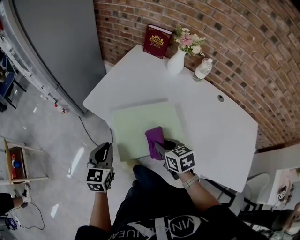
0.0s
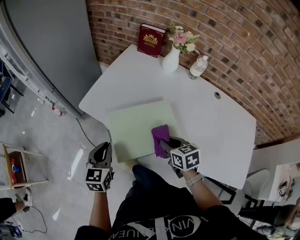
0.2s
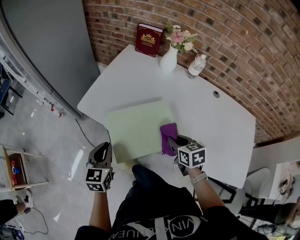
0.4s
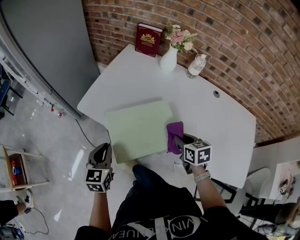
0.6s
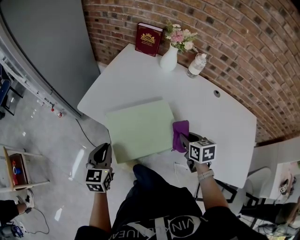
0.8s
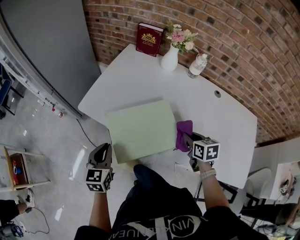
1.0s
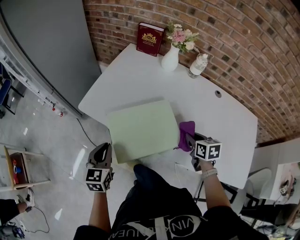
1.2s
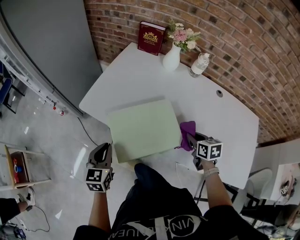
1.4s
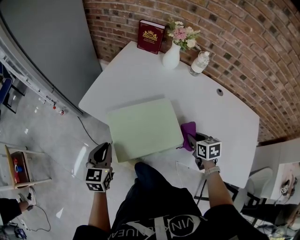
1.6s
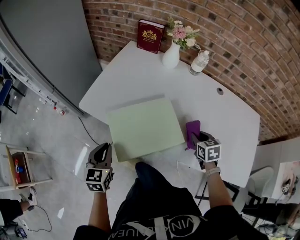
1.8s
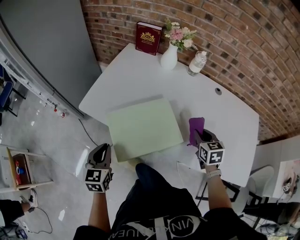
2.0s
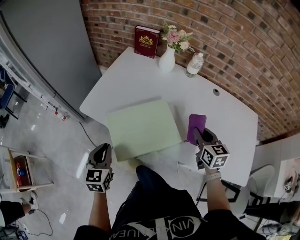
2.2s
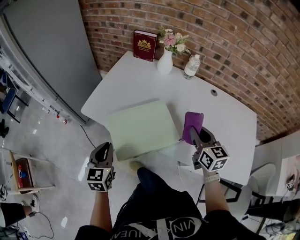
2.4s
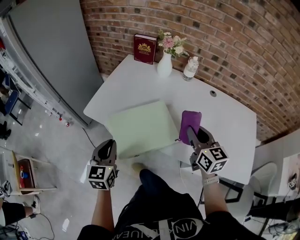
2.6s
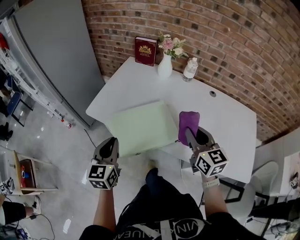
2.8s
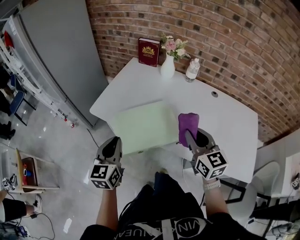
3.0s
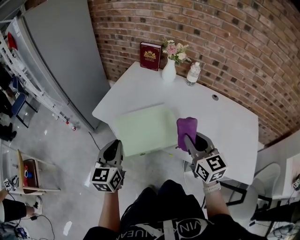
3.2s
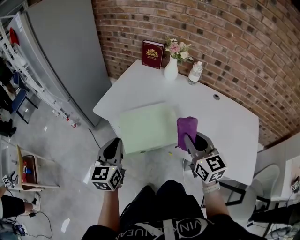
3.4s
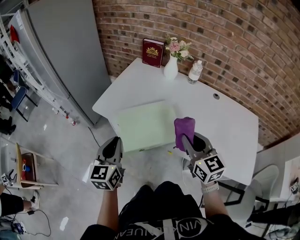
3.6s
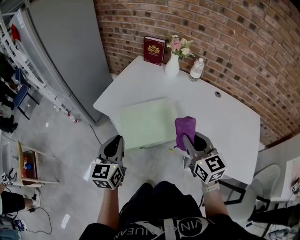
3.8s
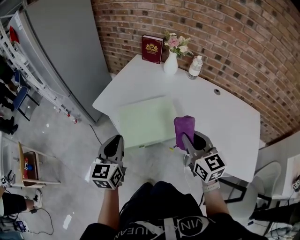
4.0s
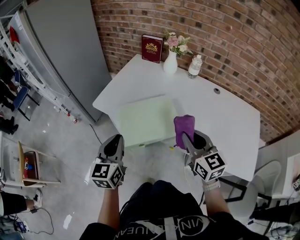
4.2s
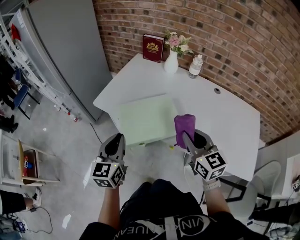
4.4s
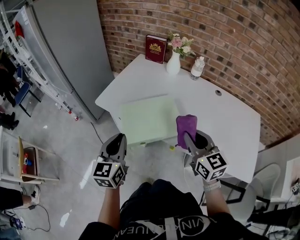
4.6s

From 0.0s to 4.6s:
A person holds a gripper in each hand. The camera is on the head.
From 0.0s to 1.6s: The right gripper goes approximately 20 cm to the right.
From 1.6s to 3.0s: The right gripper travels upward by roughly 20 cm, and tilts its fingers some 40 degrees upward. Meanwhile the left gripper goes approximately 10 cm upward.
From 3.0s to 4.6s: There are only small adjustments of the grippers.

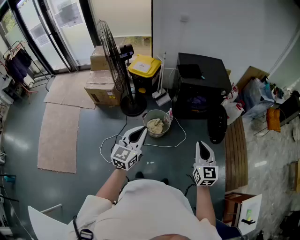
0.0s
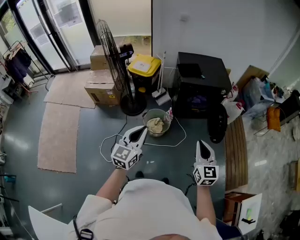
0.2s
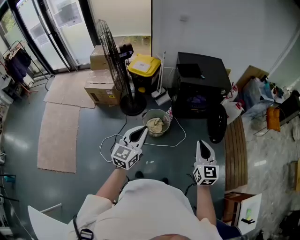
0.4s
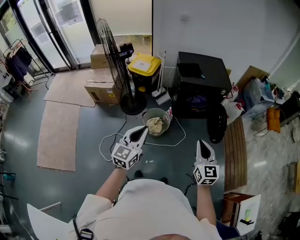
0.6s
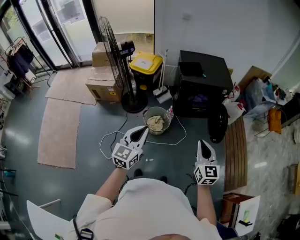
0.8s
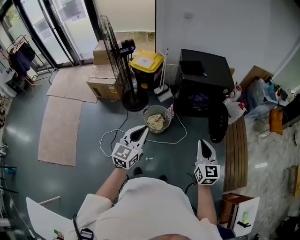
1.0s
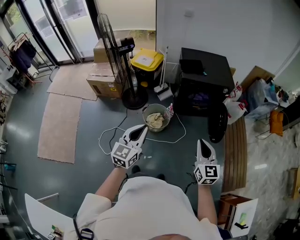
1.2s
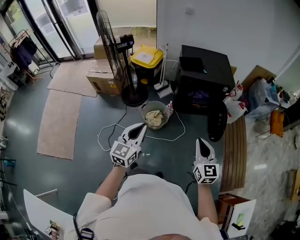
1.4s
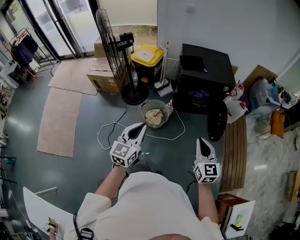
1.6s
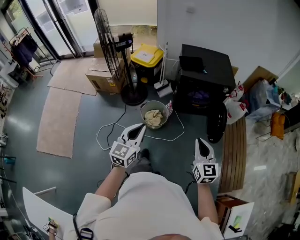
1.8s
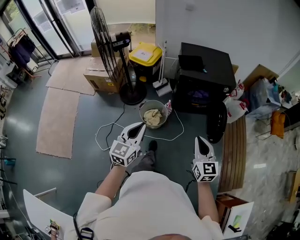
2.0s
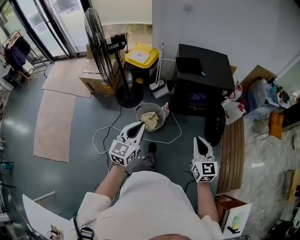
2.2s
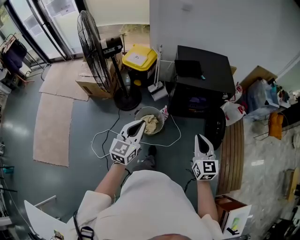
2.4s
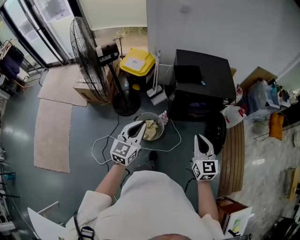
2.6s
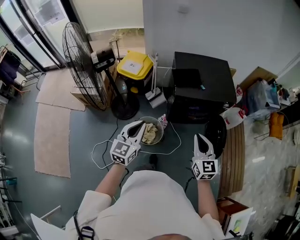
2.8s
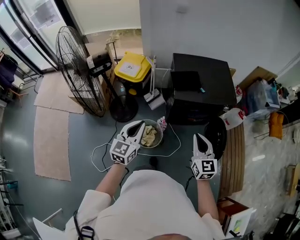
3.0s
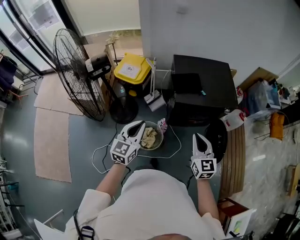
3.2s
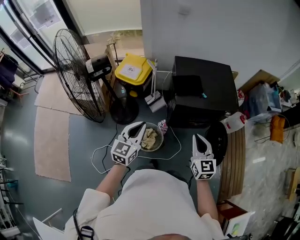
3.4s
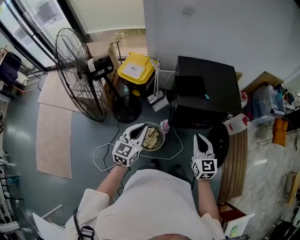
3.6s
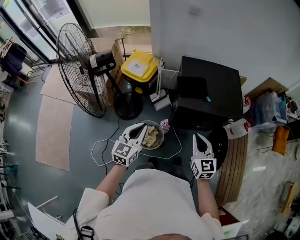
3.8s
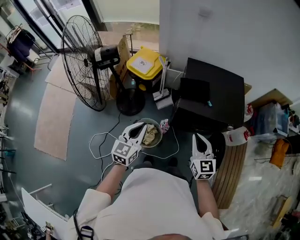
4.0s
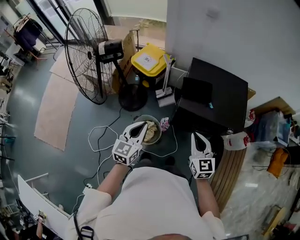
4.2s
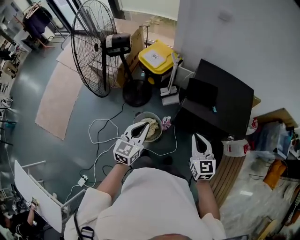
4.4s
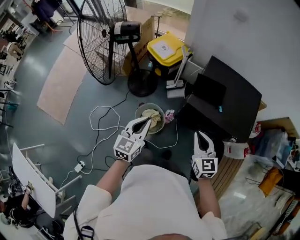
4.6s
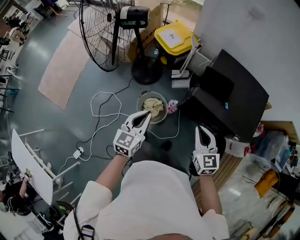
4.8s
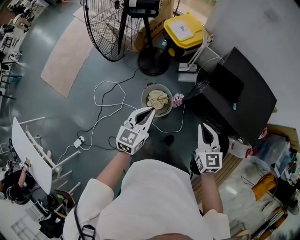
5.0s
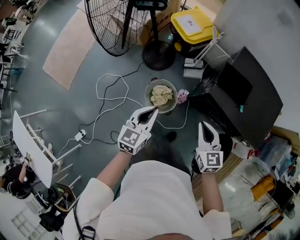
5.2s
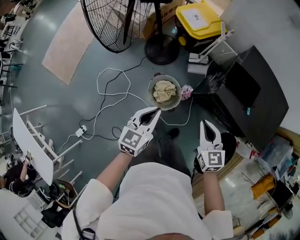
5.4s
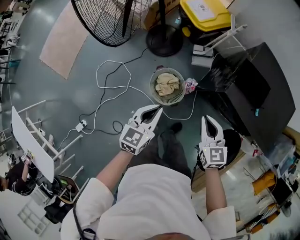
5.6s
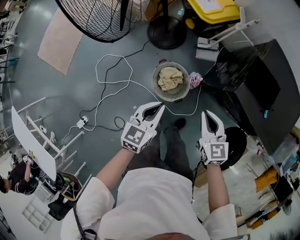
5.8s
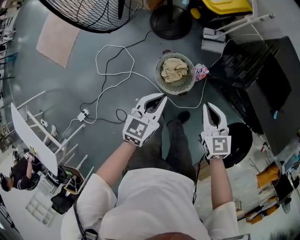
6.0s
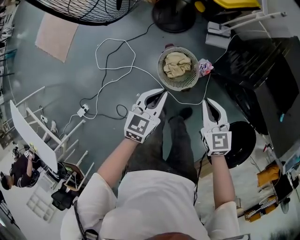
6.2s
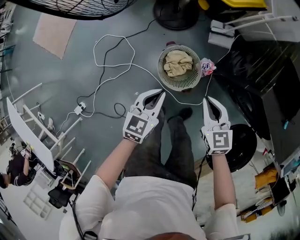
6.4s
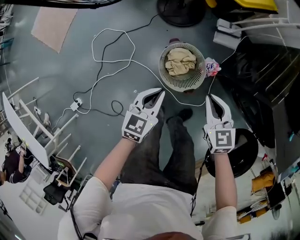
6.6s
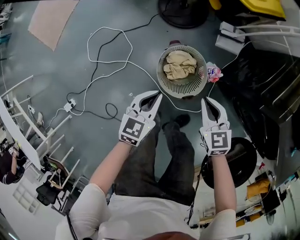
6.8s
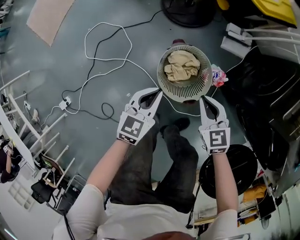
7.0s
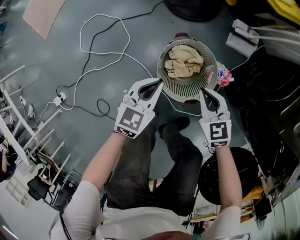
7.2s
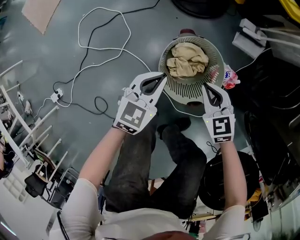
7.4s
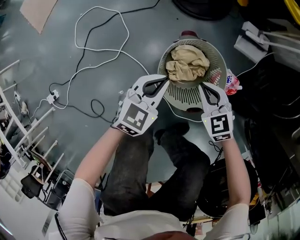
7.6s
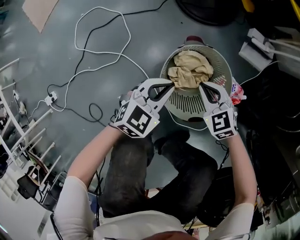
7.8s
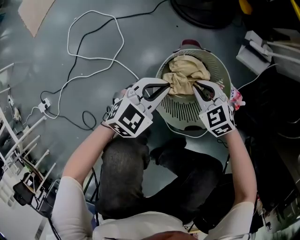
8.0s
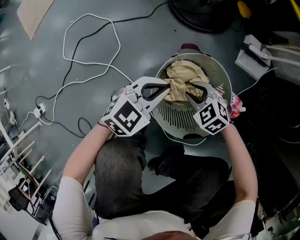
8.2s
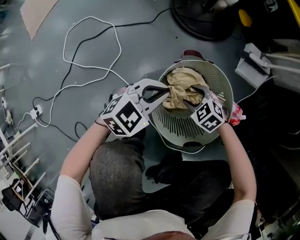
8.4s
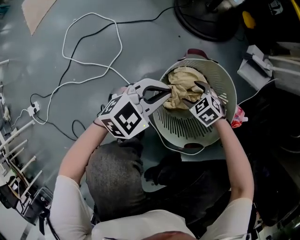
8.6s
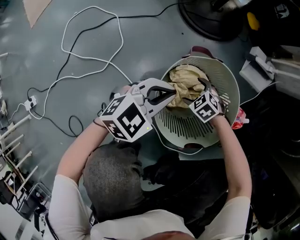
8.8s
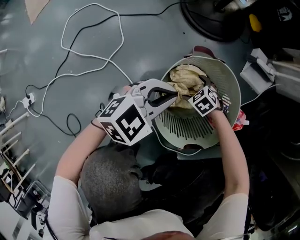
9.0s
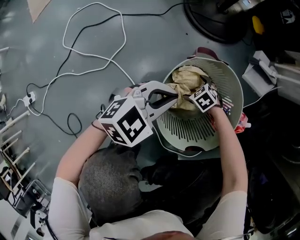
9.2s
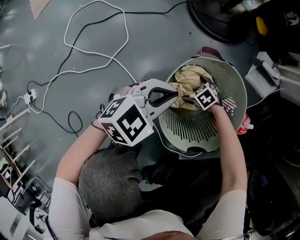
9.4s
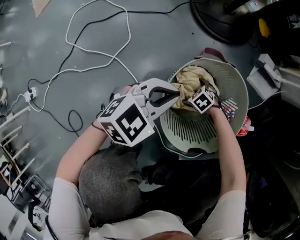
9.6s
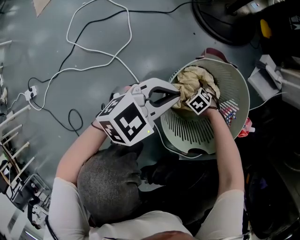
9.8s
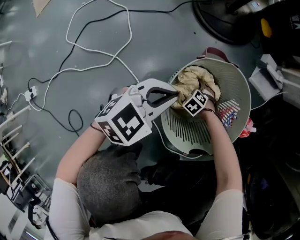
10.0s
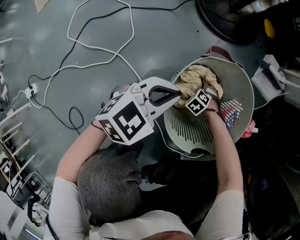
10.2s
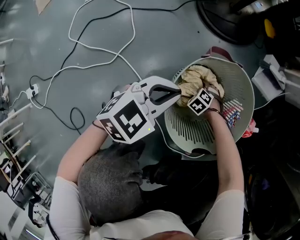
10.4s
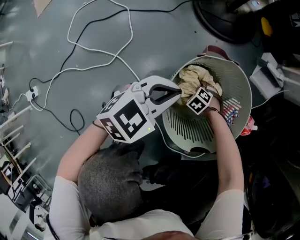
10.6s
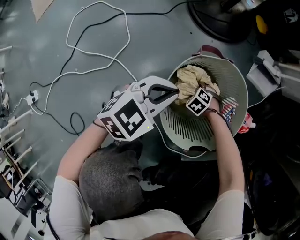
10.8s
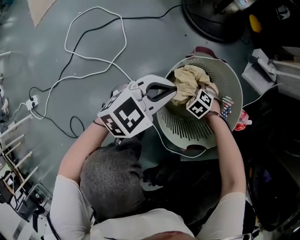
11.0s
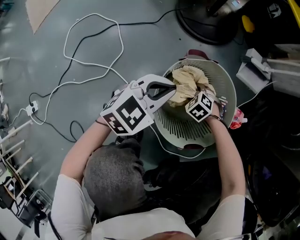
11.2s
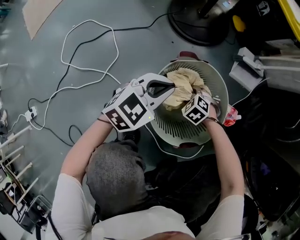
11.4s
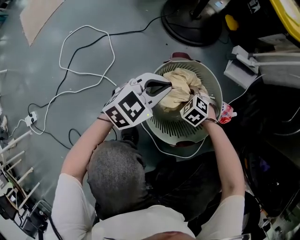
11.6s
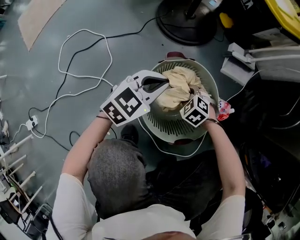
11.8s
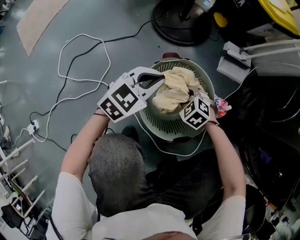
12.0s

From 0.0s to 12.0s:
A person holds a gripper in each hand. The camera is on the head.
From 0.0s to 1.6s: The two grippers go roughly 10 cm to the right.
From 1.6s to 3.0s: Both grippers move forward, some 35 cm.
From 3.0s to 4.4s: The right gripper travels forward by some 10 cm, and rotates some 20 degrees. Meanwhile the left gripper moves to the right, about 5 cm, and rotates approximately 20 degrees.
From 4.4s to 6.0s: The two grippers go approximately 30 cm downward and to the left. The left gripper swivels some 20 degrees. Meanwhile the right gripper rotates approximately 30 degrees.
From 6.0s to 7.6s: Both grippers travel together downward, about 40 cm. The right gripper turns by some 40 degrees.
From 7.6s to 9.0s: The left gripper heads downward, covering some 10 cm, and rotates roughly 20 degrees; the right gripper shifts about 35 cm downward, rotates approximately 30 degrees, and opens up.
From 9.0s to 10.4s: The right gripper heads downward, covering roughly 10 cm.
From 10.4s to 12.0s: The right gripper heads upward, covering about 25 cm, and closes; the left gripper moves some 10 cm.

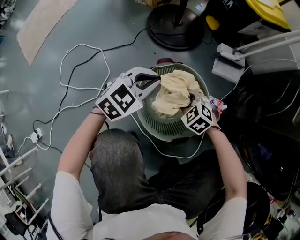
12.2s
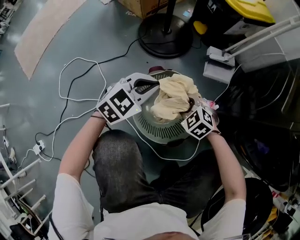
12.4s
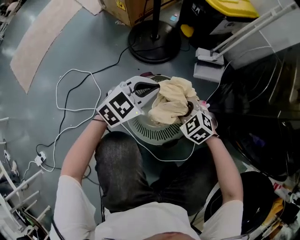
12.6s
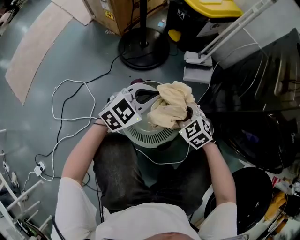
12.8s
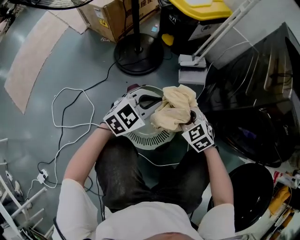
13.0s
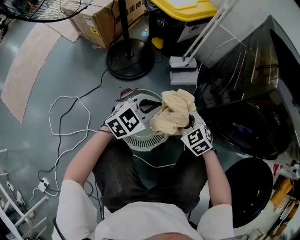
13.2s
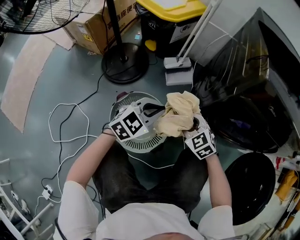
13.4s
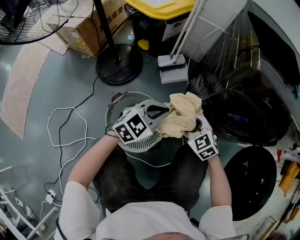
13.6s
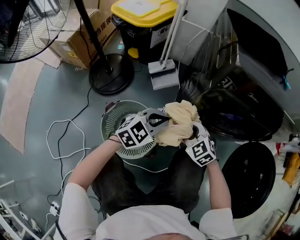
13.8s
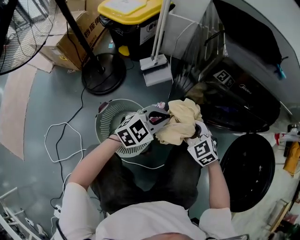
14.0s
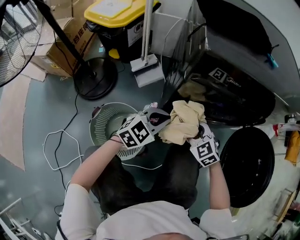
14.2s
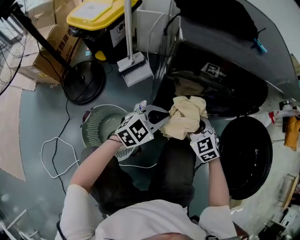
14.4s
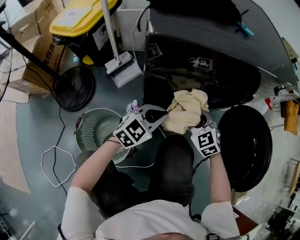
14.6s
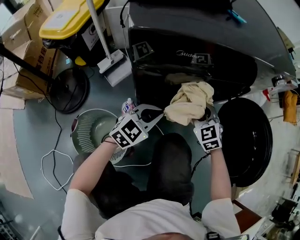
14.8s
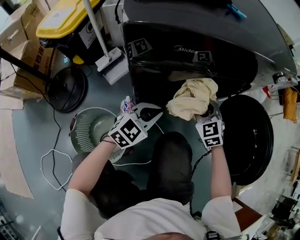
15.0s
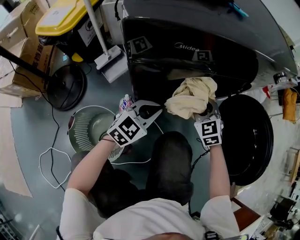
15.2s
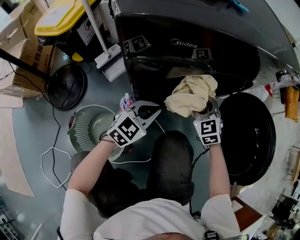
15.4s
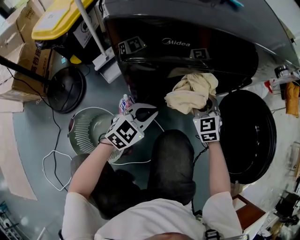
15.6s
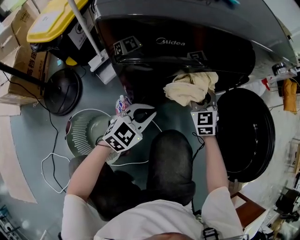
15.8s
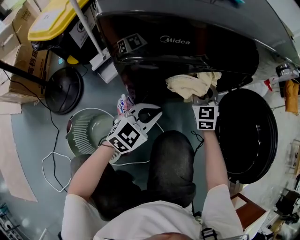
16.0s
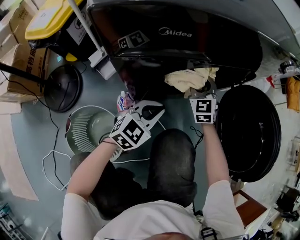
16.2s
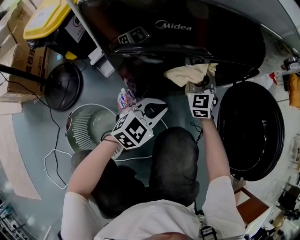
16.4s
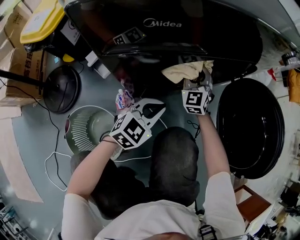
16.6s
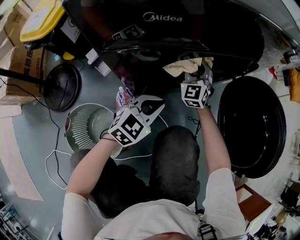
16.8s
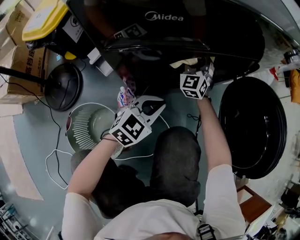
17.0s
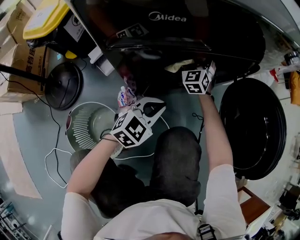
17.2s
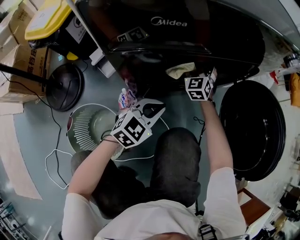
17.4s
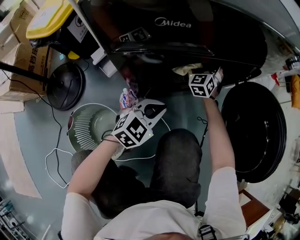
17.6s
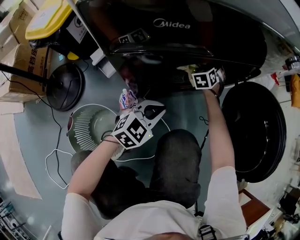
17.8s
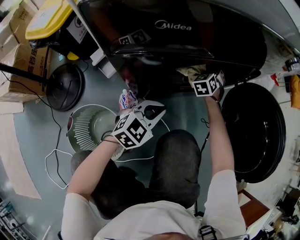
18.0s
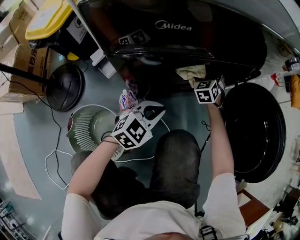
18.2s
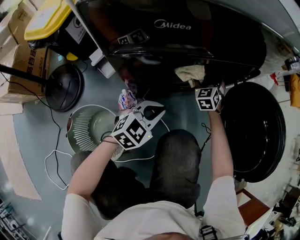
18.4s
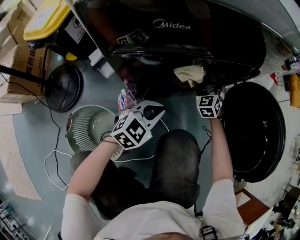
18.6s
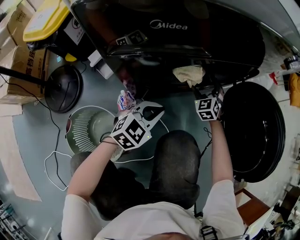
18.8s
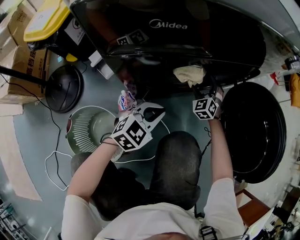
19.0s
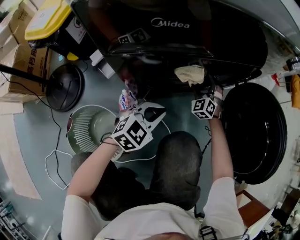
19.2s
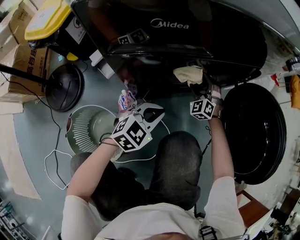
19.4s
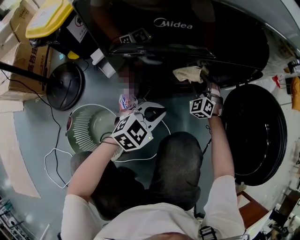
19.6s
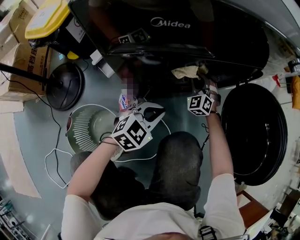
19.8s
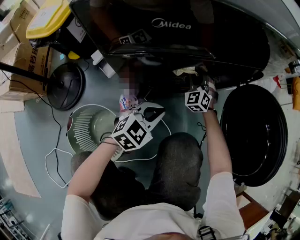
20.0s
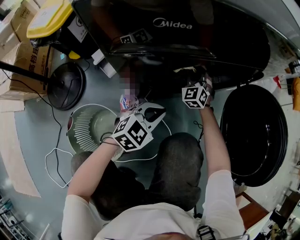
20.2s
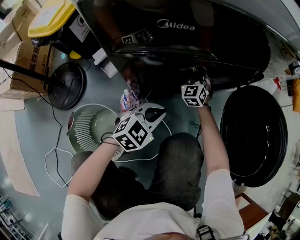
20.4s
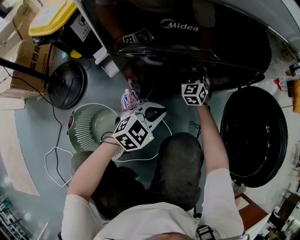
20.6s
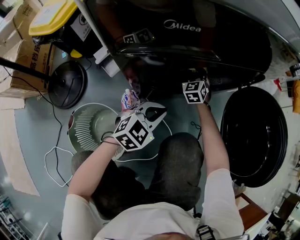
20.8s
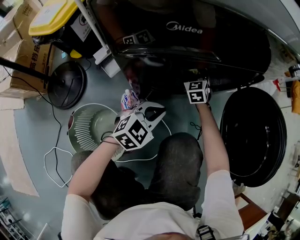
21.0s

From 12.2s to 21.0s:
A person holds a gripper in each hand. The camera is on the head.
From 12.2s to 13.6s: The left gripper shifts by roughly 25 cm, and swivels approximately 30 degrees. Meanwhile the right gripper changes place by roughly 30 cm, and changes its angle by approximately 40 degrees.
From 13.6s to 15.2s: The left gripper changes place by about 20 cm, and changes its angle by approximately 20 degrees. Meanwhile the right gripper ends up approximately 30 cm from where it was, and changes its angle by some 40 degrees.
From 15.2s to 16.6s: The left gripper shifts by some 5 cm. Meanwhile the right gripper is displaced forward by about 10 cm, and turns by approximately 30 degrees.
From 16.6s to 18.0s: The right gripper heads forward and downward, covering approximately 10 cm, swivels some 30 degrees, and opens up.
From 18.0s to 19.6s: The right gripper is displaced backward by some 10 cm, swivels about 30 degrees, and closes up.
From 19.6s to 21.0s: The right gripper shifts approximately 5 cm to the left, and swivels approximately 40 degrees.
